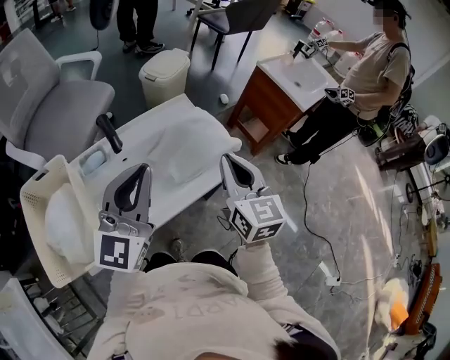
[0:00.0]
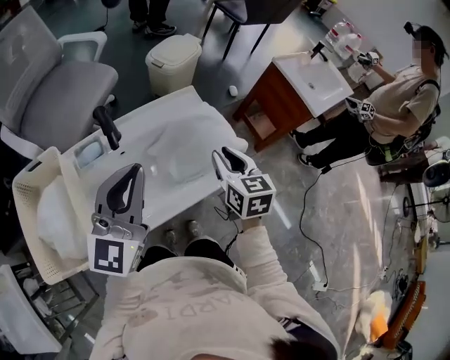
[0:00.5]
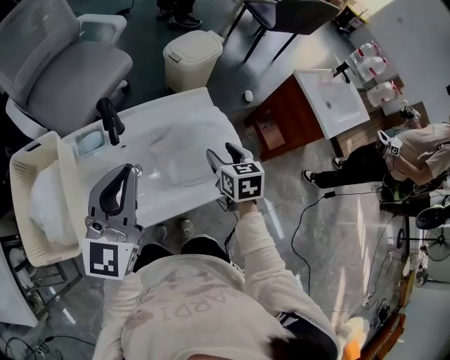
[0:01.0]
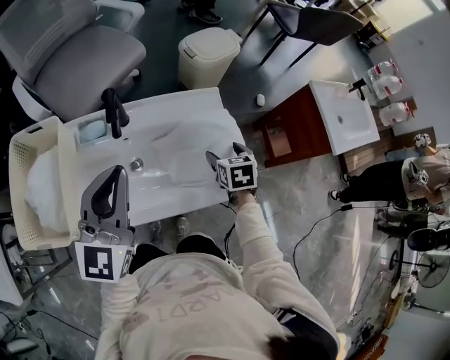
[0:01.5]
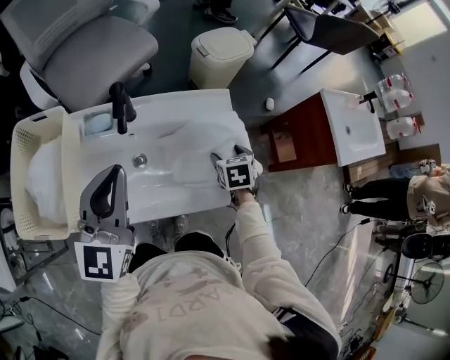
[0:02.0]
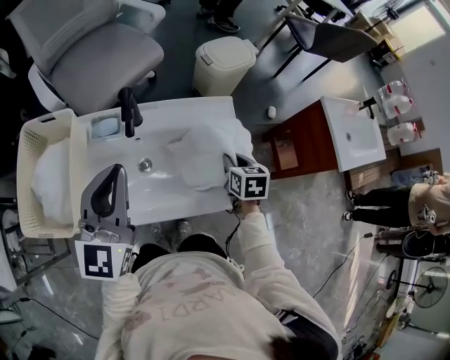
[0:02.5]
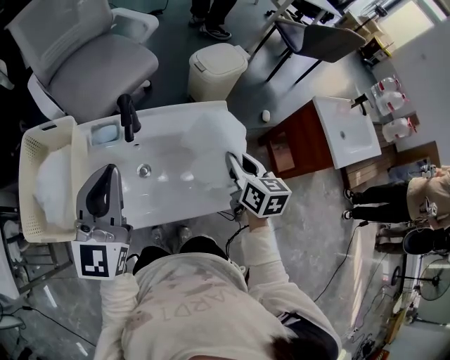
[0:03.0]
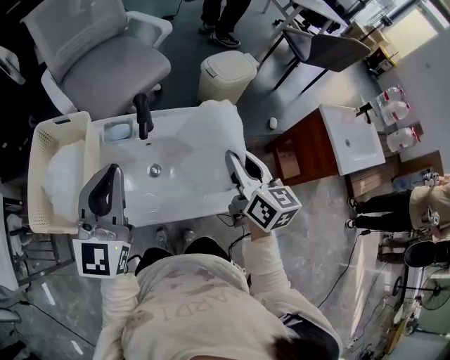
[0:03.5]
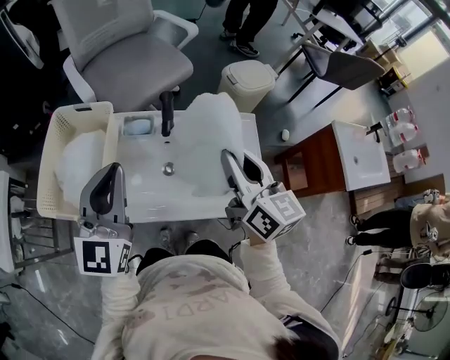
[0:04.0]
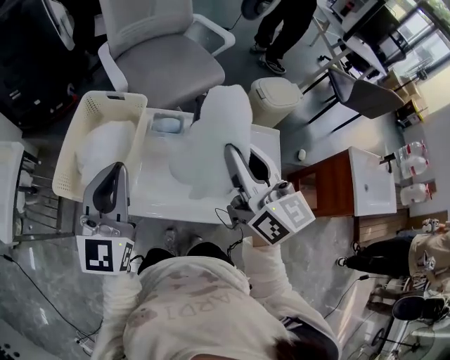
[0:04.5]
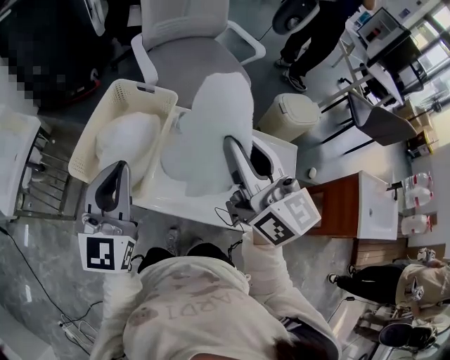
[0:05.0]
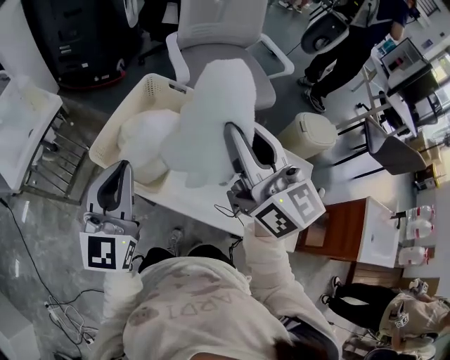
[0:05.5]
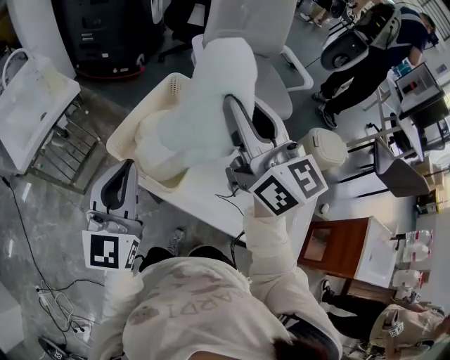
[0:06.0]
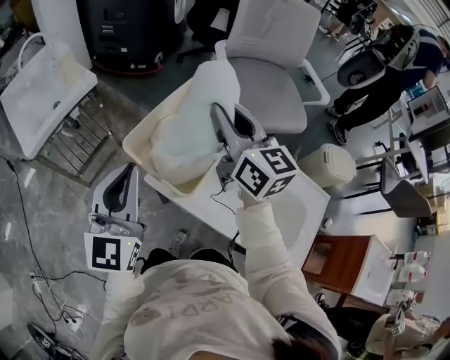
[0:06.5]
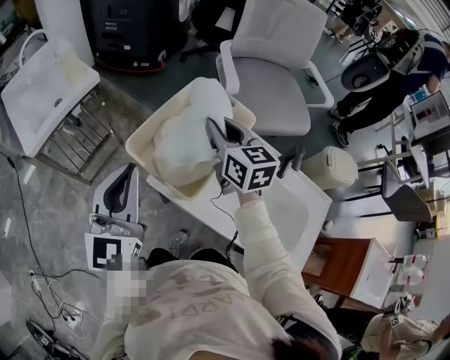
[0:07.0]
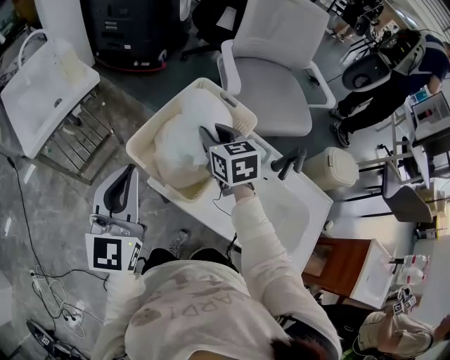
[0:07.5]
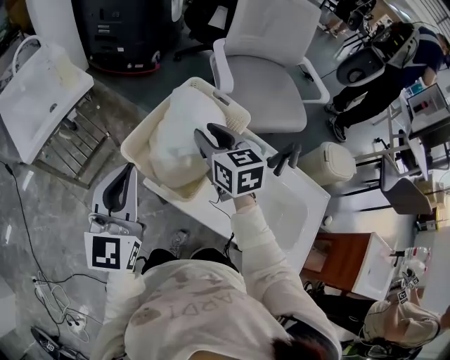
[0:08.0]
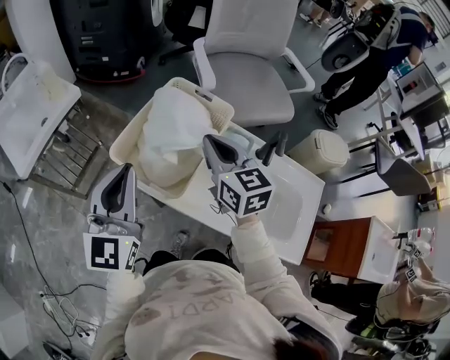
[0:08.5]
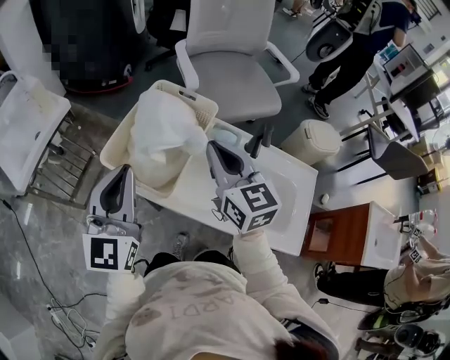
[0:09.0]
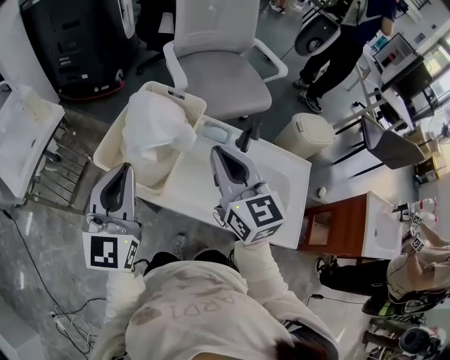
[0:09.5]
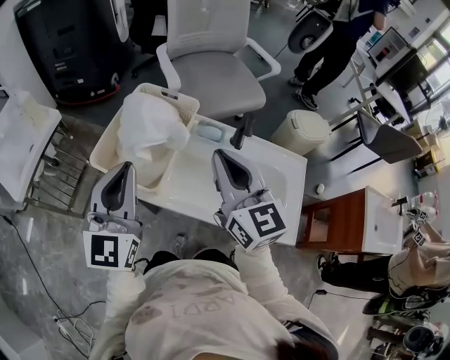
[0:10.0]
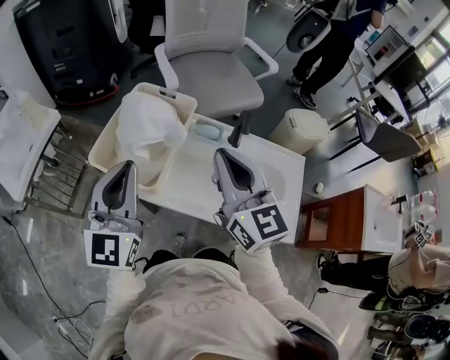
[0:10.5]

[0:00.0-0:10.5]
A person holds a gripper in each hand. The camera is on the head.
0.0 to 2.0 s: The left gripper travels forward and downward by about 10 cm, and rotates some 30 degrees. The right gripper moves downward and forward, approximately 35 cm, tips its fingers downward by roughly 50 degrees, and opens its fingers.
2.0 to 4.0 s: The left gripper is displaced to the left by approximately 10 cm. Meanwhile the right gripper shifts some 35 cm upward and to the left, tilts its fingers about 50 degrees upward, and closes its fingers.
4.0 to 6.5 s: The right gripper changes place by some 40 cm, and swivels roughly 40 degrees. The left gripper changes place by roughly 30 cm, and swivels roughly 30 degrees.
6.5 to 8.5 s: The right gripper goes some 10 cm downward.
8.5 to 10.5 s: The left gripper shifts about 10 cm to the right. Meanwhile the right gripper travels backward, to the right and upward by about 20 cm, and turns by about 20 degrees.

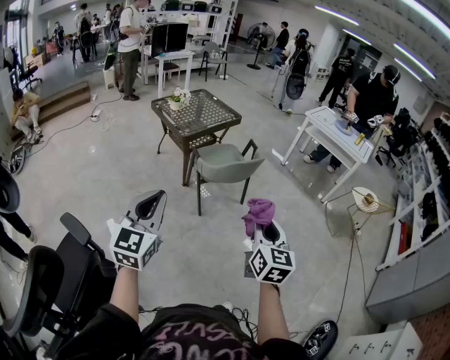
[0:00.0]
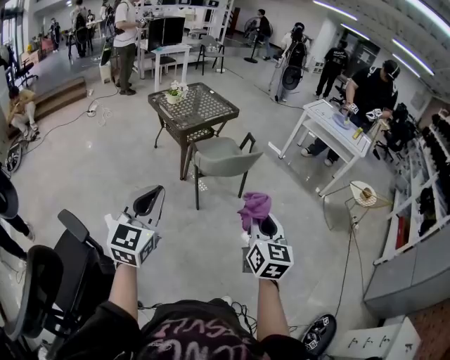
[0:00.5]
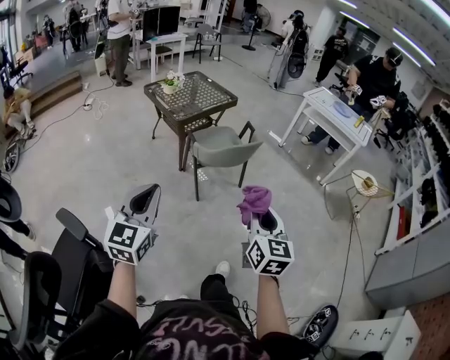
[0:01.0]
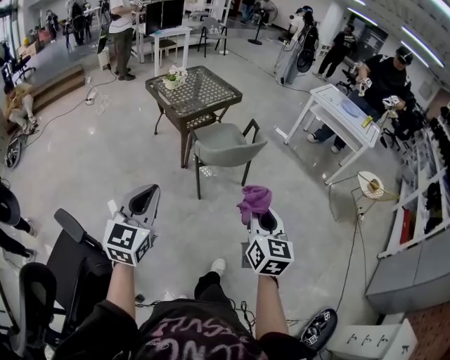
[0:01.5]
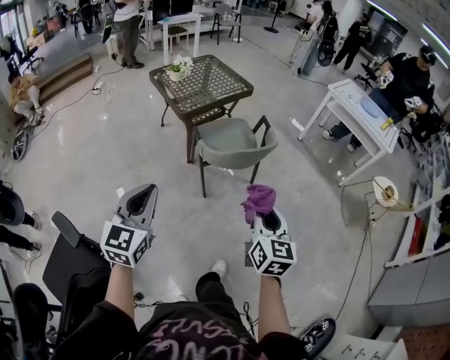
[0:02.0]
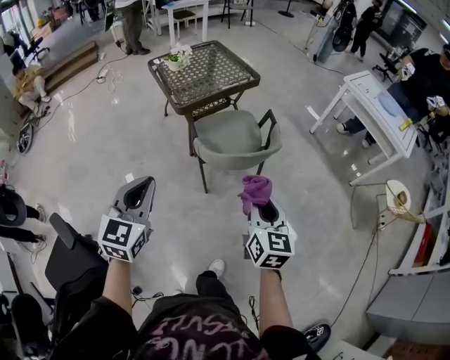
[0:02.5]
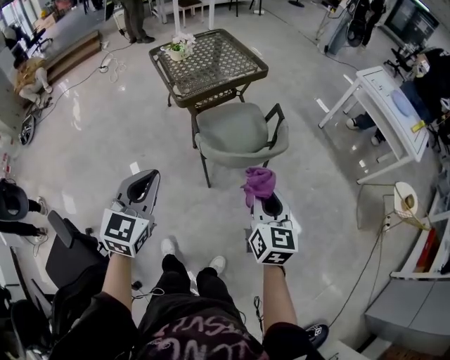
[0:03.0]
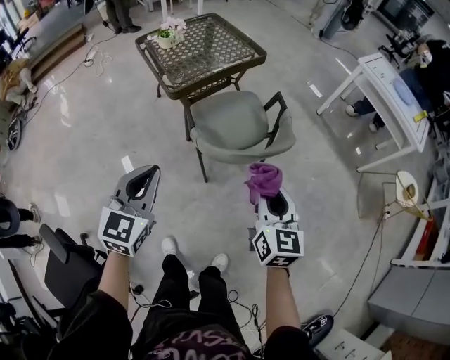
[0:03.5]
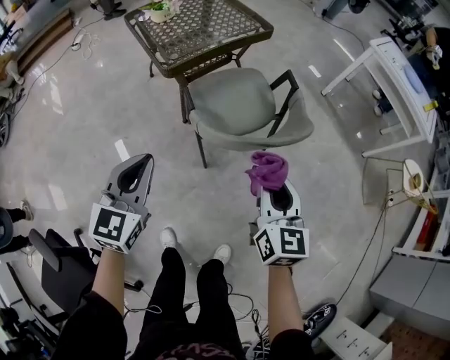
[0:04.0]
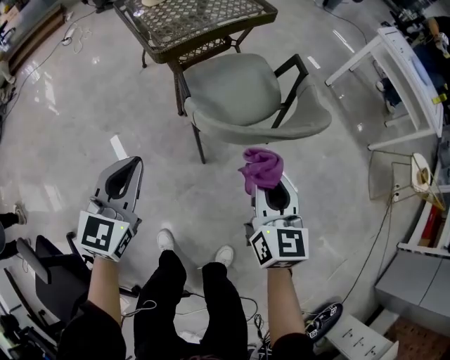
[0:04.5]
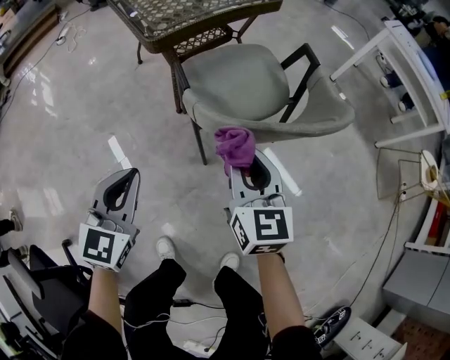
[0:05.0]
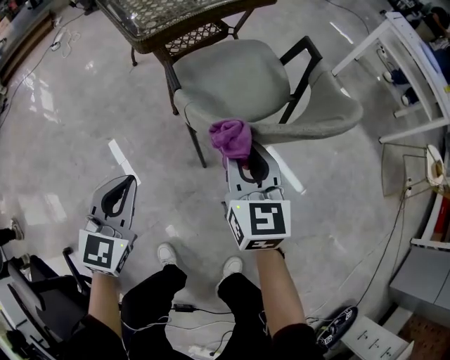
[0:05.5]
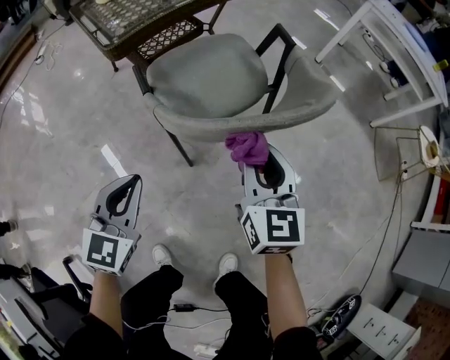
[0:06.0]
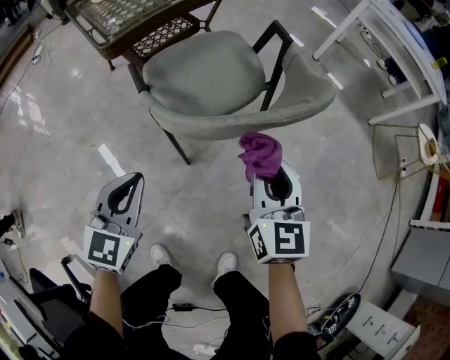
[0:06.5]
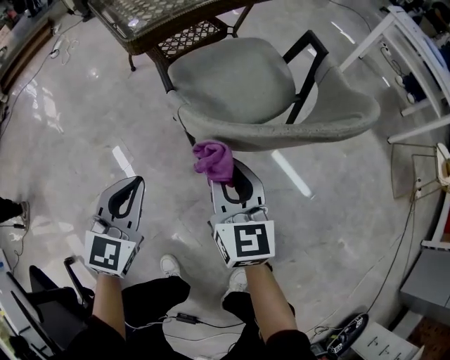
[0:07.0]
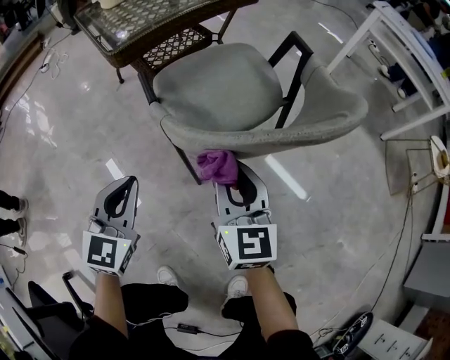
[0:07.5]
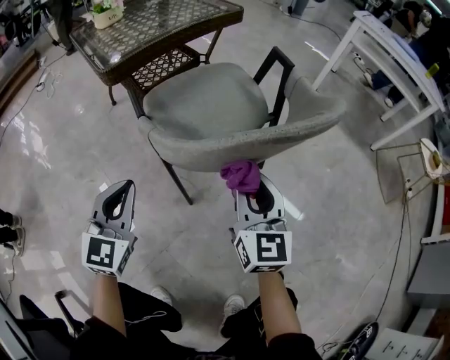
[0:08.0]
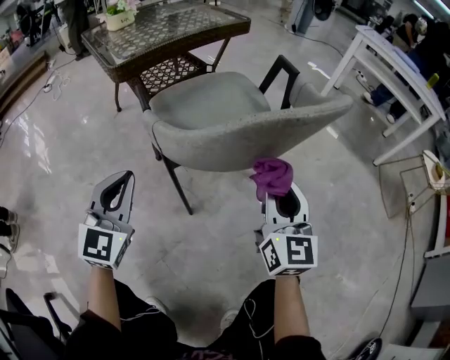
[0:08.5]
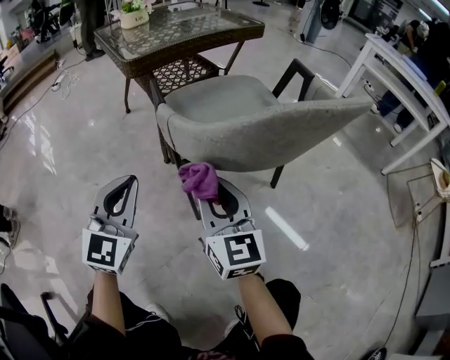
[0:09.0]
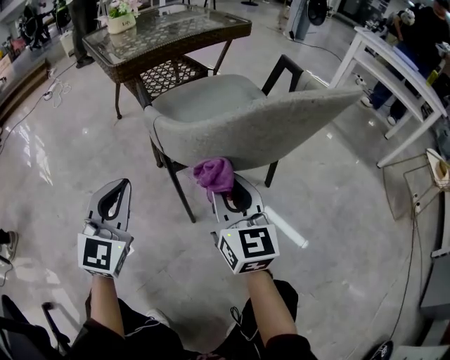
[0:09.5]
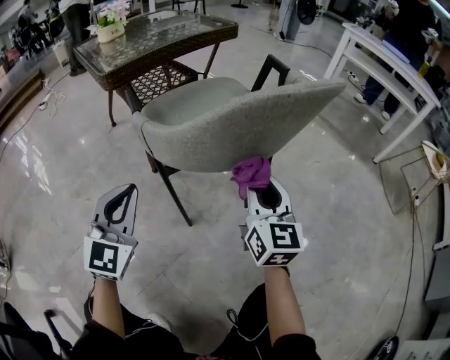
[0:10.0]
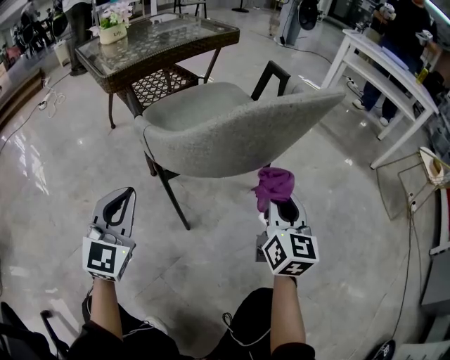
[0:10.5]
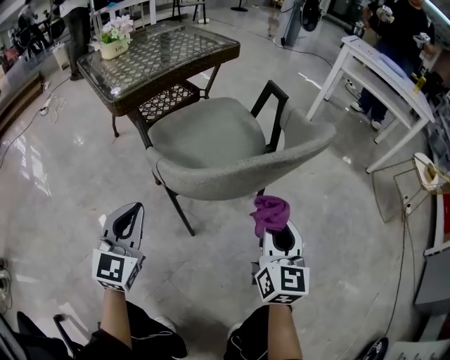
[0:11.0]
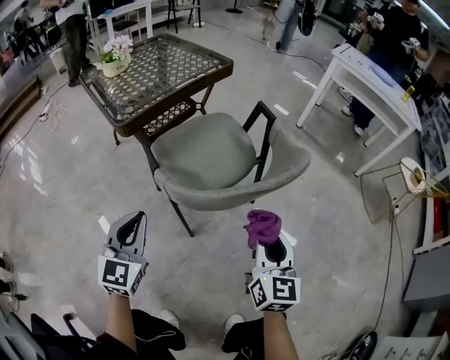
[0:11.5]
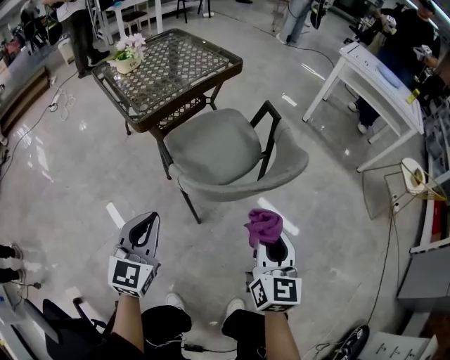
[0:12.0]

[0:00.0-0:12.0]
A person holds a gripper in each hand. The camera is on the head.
0.0 to 2.0 s: The left gripper moves forward and downward, some 20 cm, while the right gripper moves forward, about 20 cm.
2.0 to 4.0 s: The two grippers go about 30 cm forward and downward.
4.0 to 6.0 s: The right gripper shifts roughly 20 cm downward and forward. The left gripper shifts roughly 25 cm downward.
6.0 to 8.0 s: The right gripper goes roughly 10 cm downward, and goes to the left and returns, roughly 10 cm each way, while the left gripper moves downward and forward, some 10 cm.
8.0 to 10.0 s: The left gripper changes place by roughly 5 cm; the right gripper swings left and right, about 20 cm each way, with 2 reversals.
10.0 to 12.0 s: The right gripper shifts approximately 25 cm upward and backward, while the left gripper is displaced upward by some 20 cm.

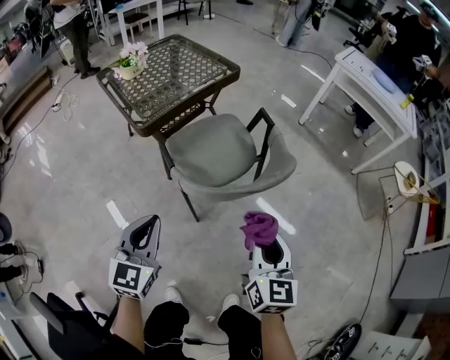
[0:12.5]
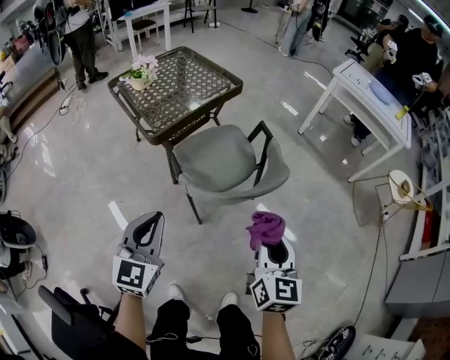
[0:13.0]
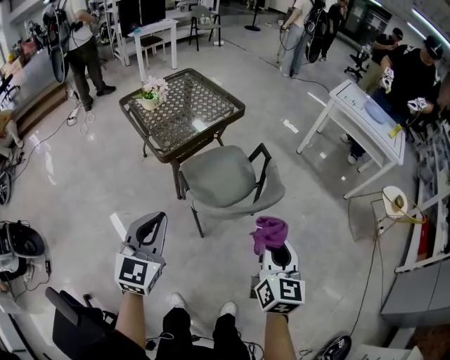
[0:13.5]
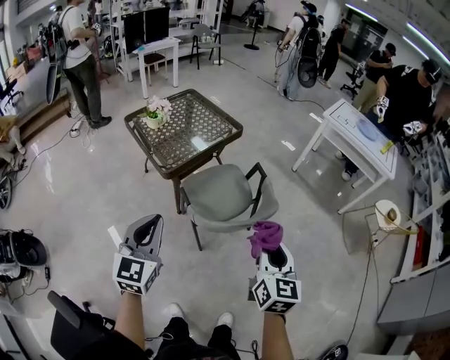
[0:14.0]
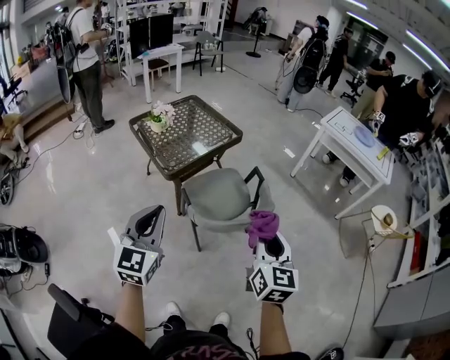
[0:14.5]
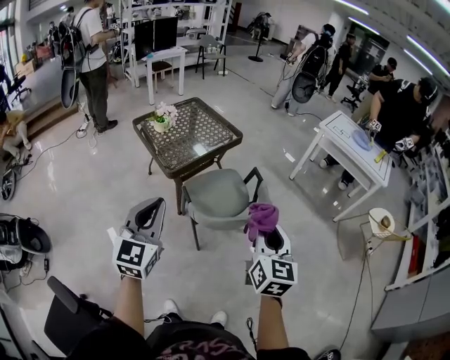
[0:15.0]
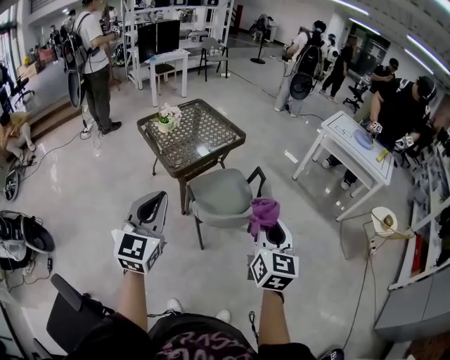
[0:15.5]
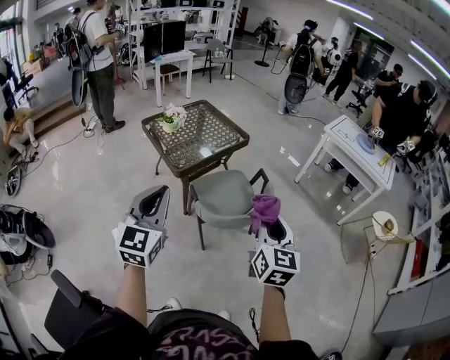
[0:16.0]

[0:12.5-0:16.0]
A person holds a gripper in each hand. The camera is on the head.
12.5 to 14.5 s: The grippers both shift upward by about 30 cm.
14.5 to 16.0 s: The left gripper heads upward, covering about 5 cm.

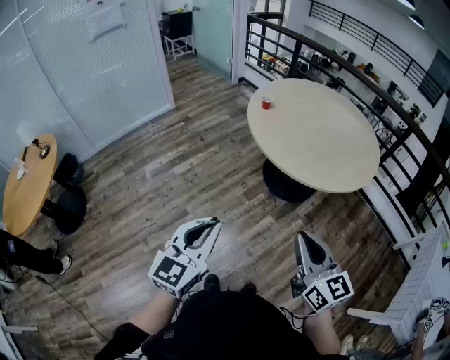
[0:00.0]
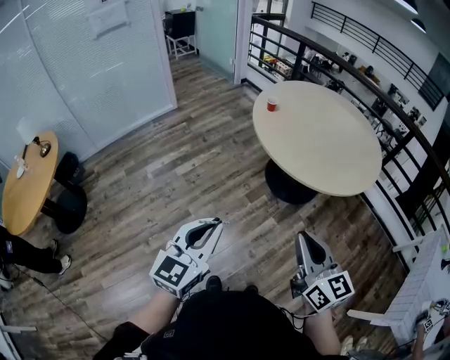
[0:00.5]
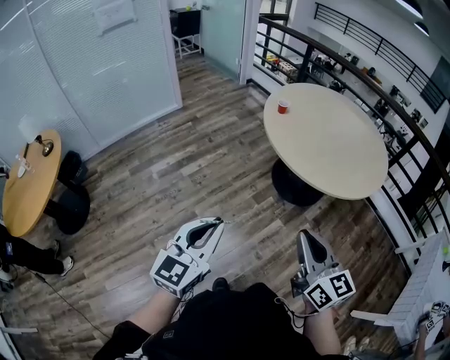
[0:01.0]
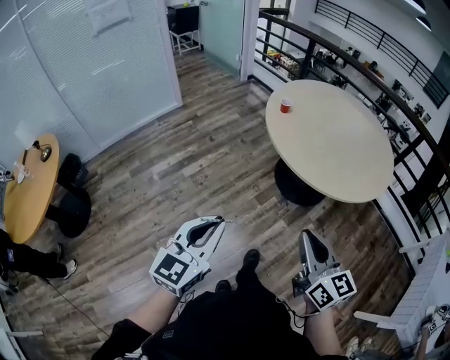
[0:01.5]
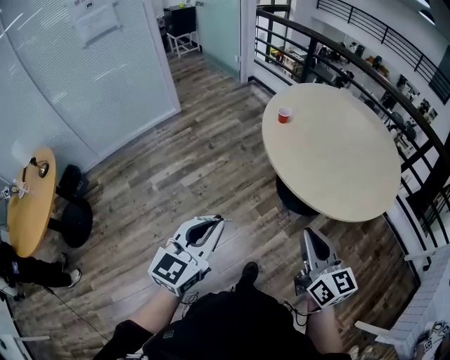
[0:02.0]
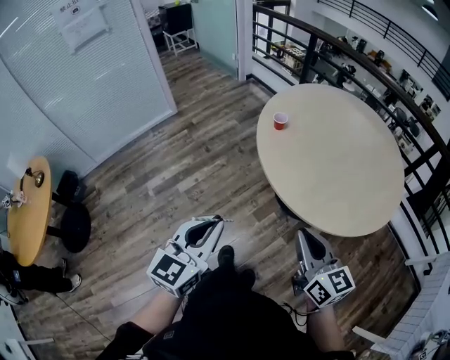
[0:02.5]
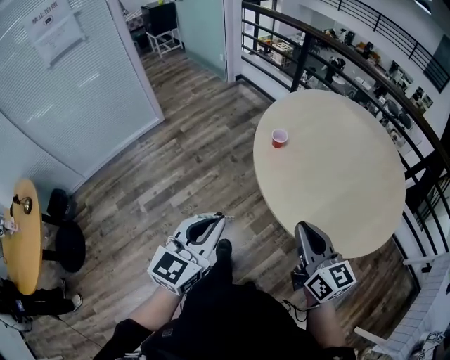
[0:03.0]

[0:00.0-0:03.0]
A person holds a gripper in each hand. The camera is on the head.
0.0 to 1.5 s: The two grippers go approximately 10 cm to the left and forward.
1.5 to 3.0 s: The two grippers go some 35 cm forward.
